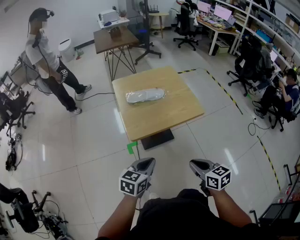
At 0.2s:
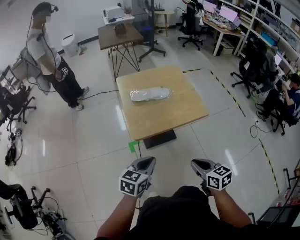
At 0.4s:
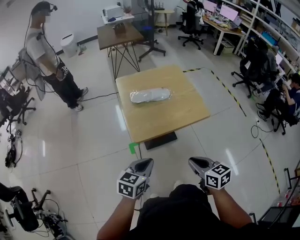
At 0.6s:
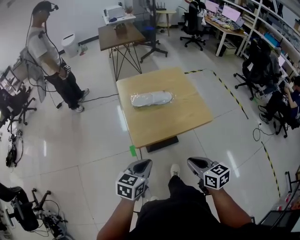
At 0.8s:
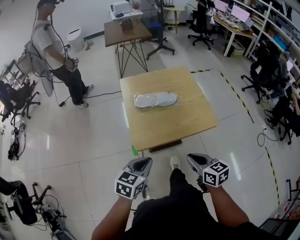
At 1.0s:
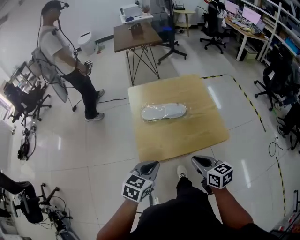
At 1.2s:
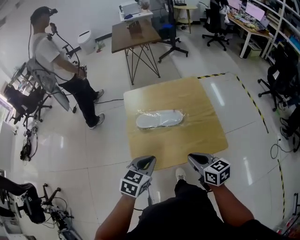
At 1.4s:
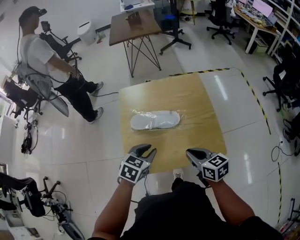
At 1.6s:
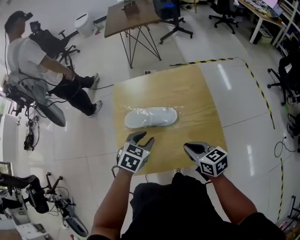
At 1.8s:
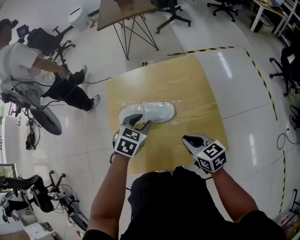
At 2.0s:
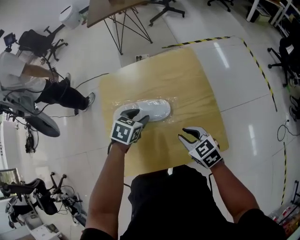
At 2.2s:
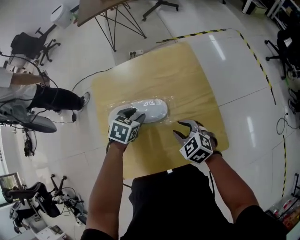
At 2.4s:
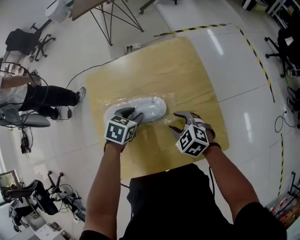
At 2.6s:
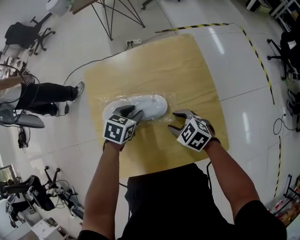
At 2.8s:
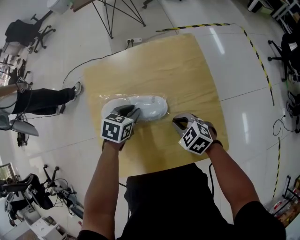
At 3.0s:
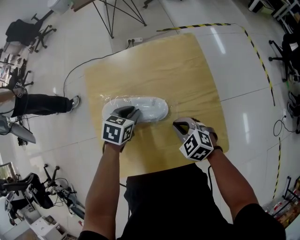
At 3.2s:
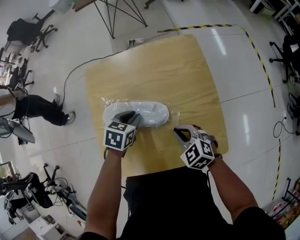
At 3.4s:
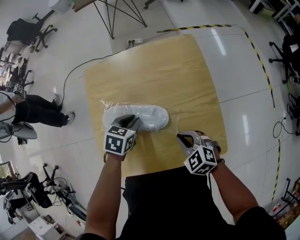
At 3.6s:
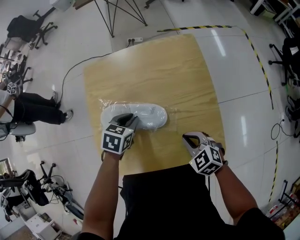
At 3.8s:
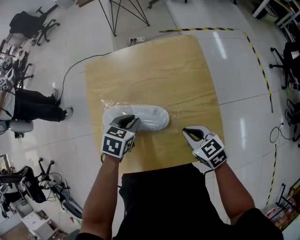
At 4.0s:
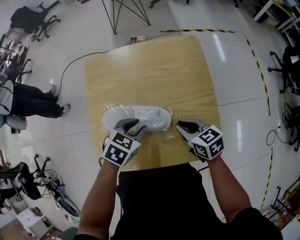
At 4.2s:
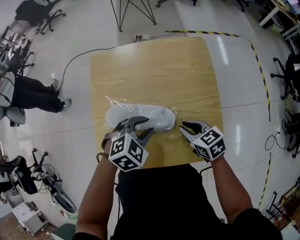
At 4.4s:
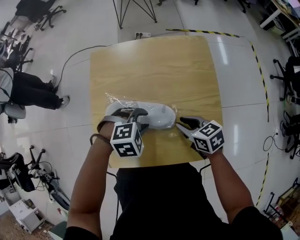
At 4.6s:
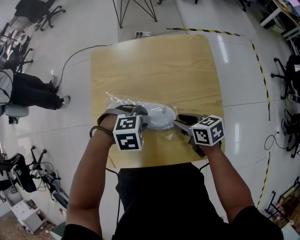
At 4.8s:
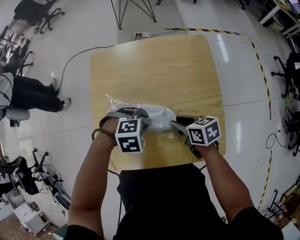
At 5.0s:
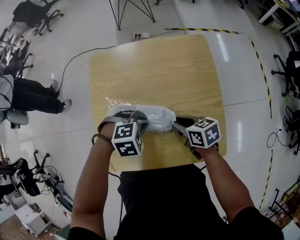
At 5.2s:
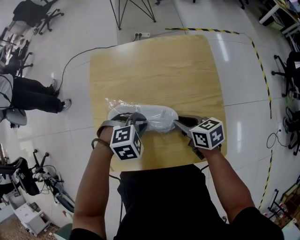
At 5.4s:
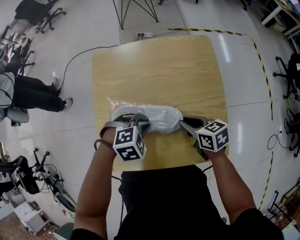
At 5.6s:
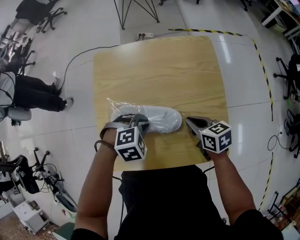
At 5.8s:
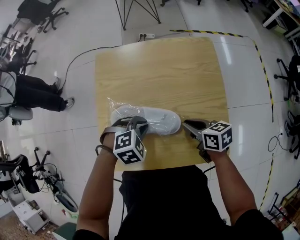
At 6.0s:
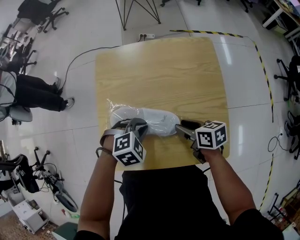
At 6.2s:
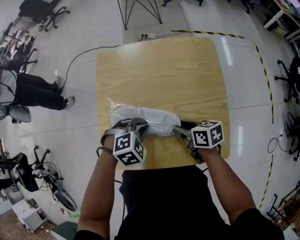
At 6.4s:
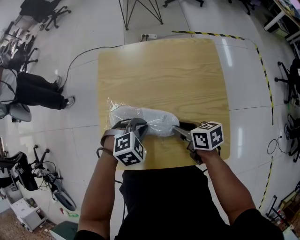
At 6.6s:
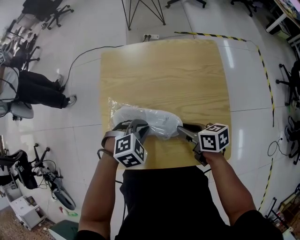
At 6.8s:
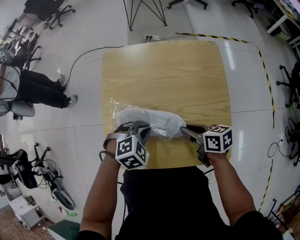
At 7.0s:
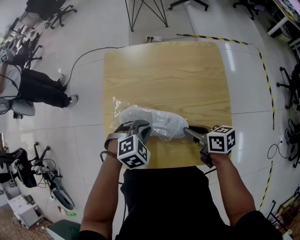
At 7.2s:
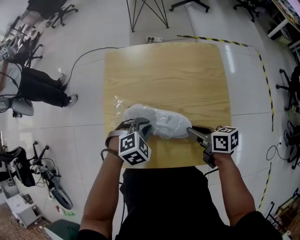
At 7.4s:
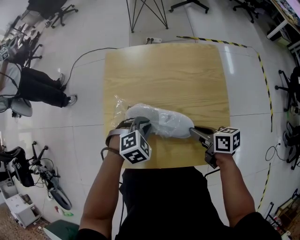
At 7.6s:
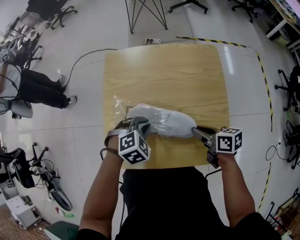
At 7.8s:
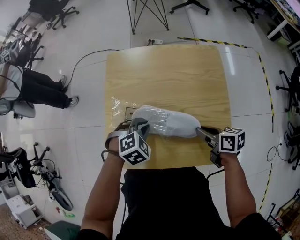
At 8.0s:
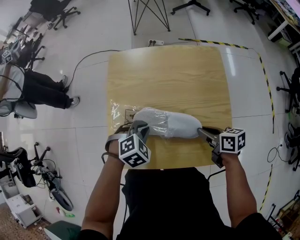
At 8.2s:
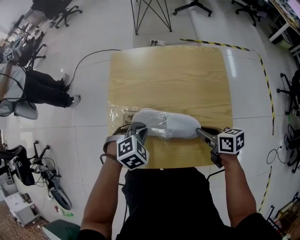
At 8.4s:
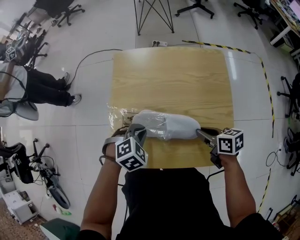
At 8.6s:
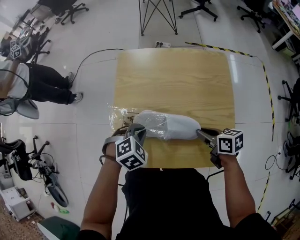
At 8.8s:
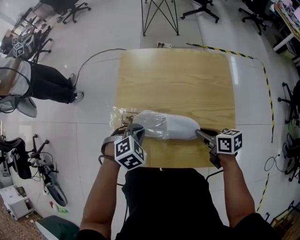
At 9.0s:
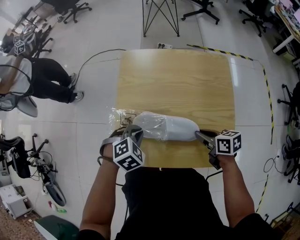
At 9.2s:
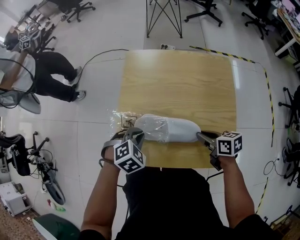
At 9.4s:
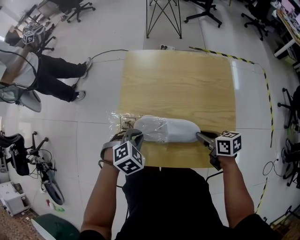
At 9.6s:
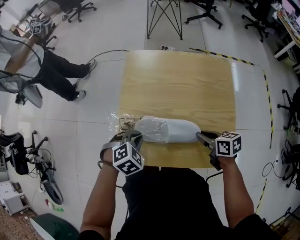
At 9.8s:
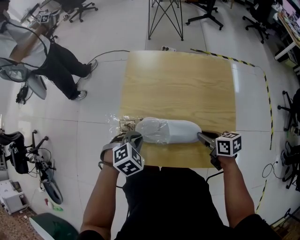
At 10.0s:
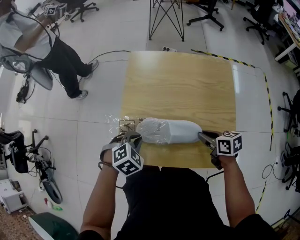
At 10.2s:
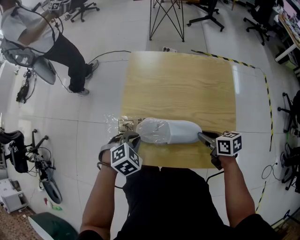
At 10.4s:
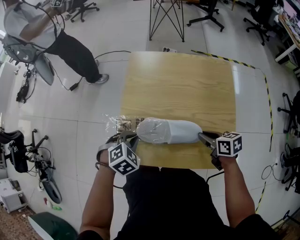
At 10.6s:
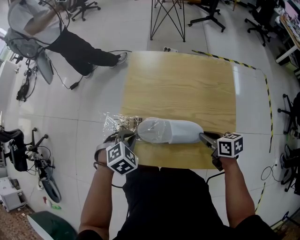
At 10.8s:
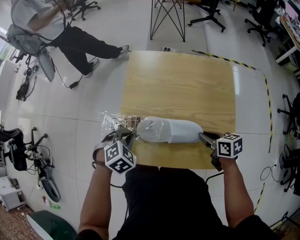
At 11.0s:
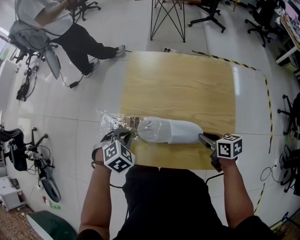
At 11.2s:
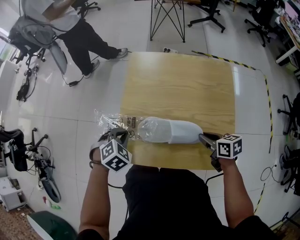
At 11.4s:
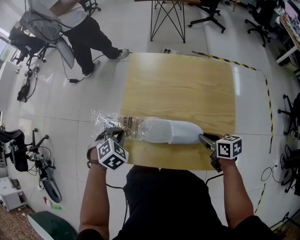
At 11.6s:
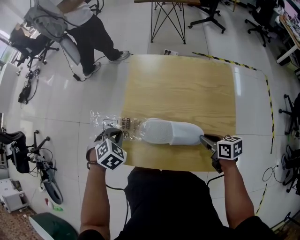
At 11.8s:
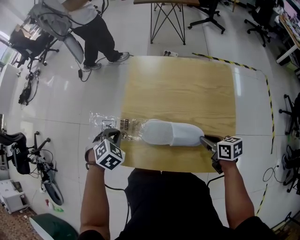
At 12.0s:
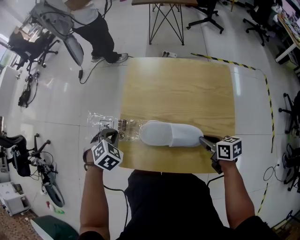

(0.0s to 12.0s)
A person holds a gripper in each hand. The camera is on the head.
0.0s - 1.6s: The two grippers travel together, forward, approximately 40 cm. The left gripper swivels approximately 30 degrees, and opens up.
1.6s - 3.0s: Both grippers travel together downward and forward, roughly 15 cm. The right gripper rotates roughly 40 degrees, and opens, then closes again.
3.0s - 4.4s: The left gripper heads backward, covering roughly 10 cm, and rolls clockwise, seen from behind, by approximately 50 degrees; the right gripper changes its angle by some 30 degrees, and opens.
4.4s - 6.0s: The right gripper swivels approximately 20 degrees, and closes, then reopens. The left gripper closes.
6.0s - 7.6s: The right gripper changes place by some 5 cm, and closes up.
7.6s - 9.0s: The left gripper is displaced to the left by roughly 10 cm.
9.0s - 10.4s: The left gripper shifts by about 5 cm.
10.4s - 12.0s: The left gripper travels forward and to the left by roughly 10 cm.

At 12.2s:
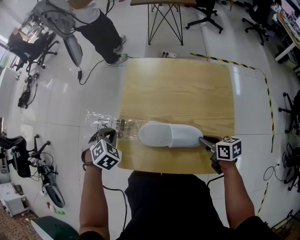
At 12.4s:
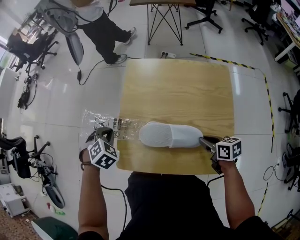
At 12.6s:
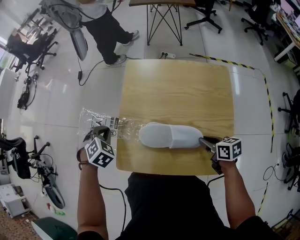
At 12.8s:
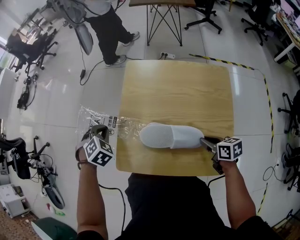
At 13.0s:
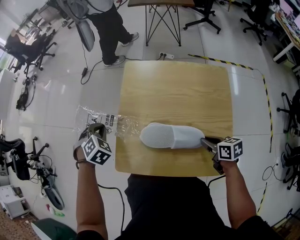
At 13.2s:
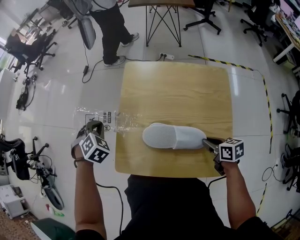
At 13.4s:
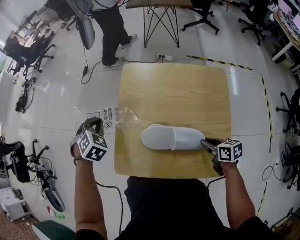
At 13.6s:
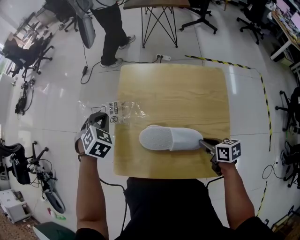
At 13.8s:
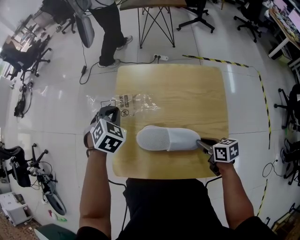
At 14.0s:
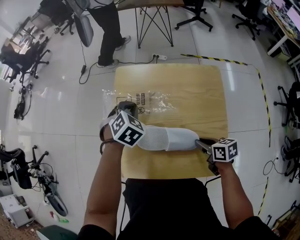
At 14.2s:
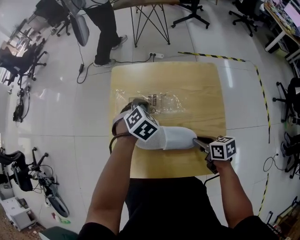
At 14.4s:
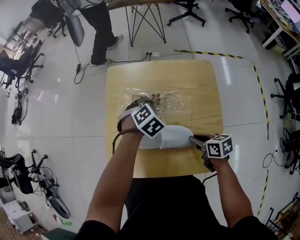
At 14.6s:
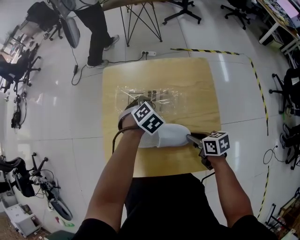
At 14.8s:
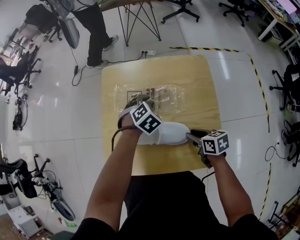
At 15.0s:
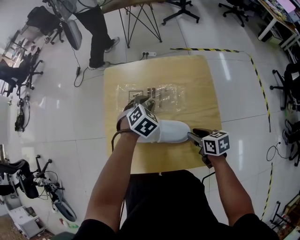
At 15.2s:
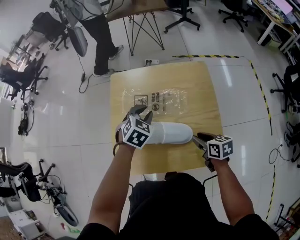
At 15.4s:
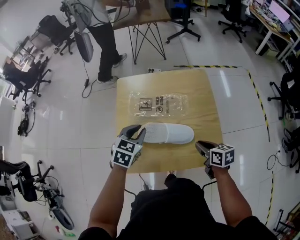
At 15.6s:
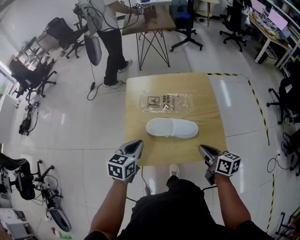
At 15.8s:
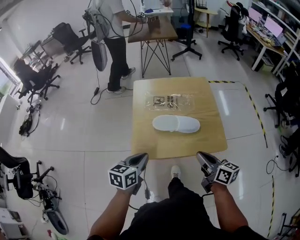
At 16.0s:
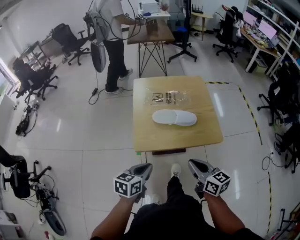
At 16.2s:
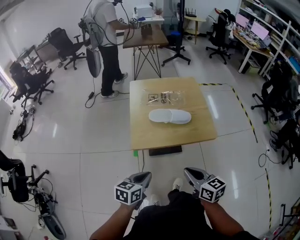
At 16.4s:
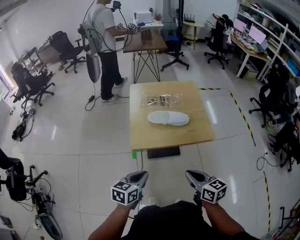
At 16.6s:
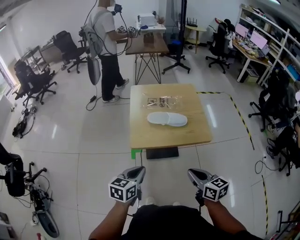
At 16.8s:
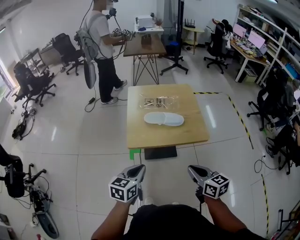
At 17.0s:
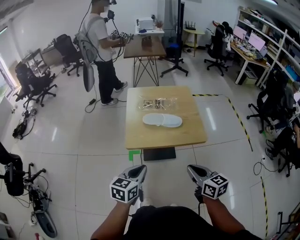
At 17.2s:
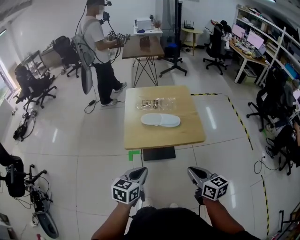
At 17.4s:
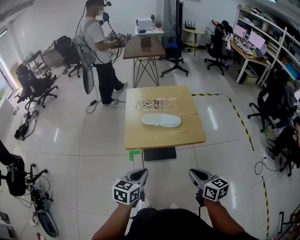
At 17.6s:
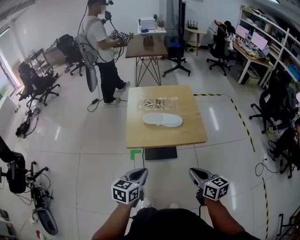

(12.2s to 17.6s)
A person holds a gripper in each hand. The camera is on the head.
12.2s - 13.6s: The left gripper shifts roughly 10 cm forward, to the right and upward.
13.6s - 15.0s: The right gripper opens. Meanwhile the left gripper shifts some 25 cm to the right, swivels roughly 20 degrees, and opens up.
15.0s - 16.2s: Both grippers are carried backward, roughly 50 cm. The right gripper is displaced upward by approximately 20 cm, swivels about 30 degrees, and closes up, while the left gripper rotates around the line of its fingers by some 40 degrees, counterclockwise from behind, and closes its fingers.
16.2s - 17.6s: The left gripper heads upward and to the right, covering roughly 10 cm; the right gripper shifts roughly 10 cm to the right.

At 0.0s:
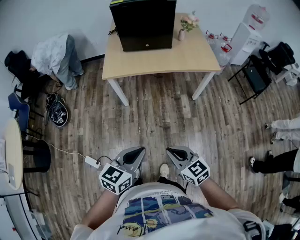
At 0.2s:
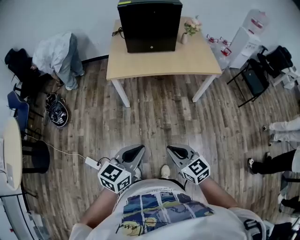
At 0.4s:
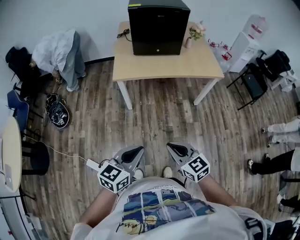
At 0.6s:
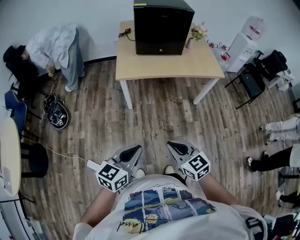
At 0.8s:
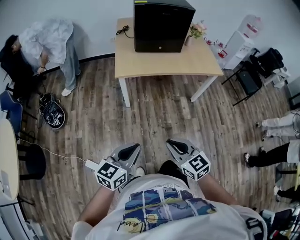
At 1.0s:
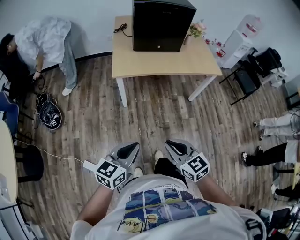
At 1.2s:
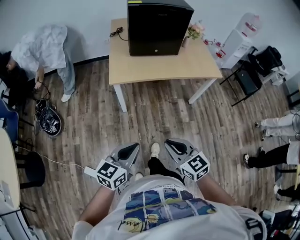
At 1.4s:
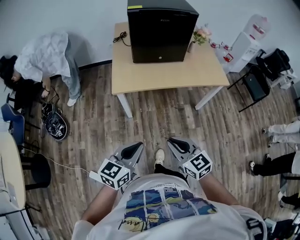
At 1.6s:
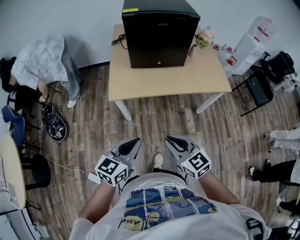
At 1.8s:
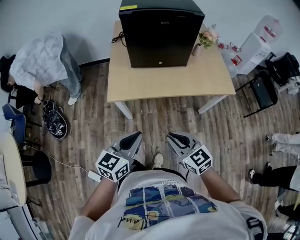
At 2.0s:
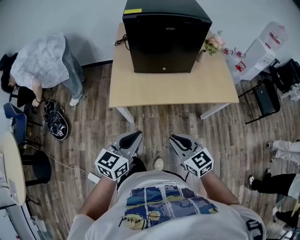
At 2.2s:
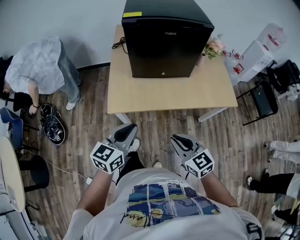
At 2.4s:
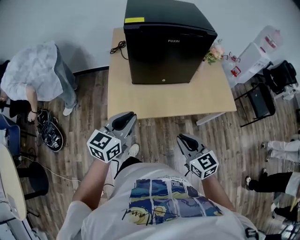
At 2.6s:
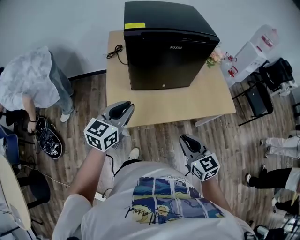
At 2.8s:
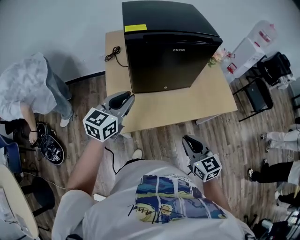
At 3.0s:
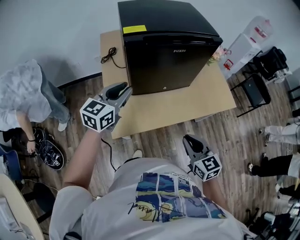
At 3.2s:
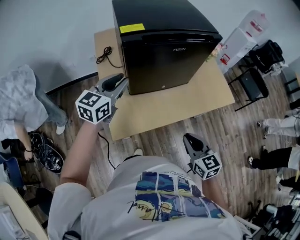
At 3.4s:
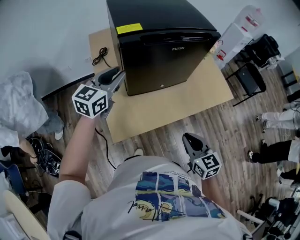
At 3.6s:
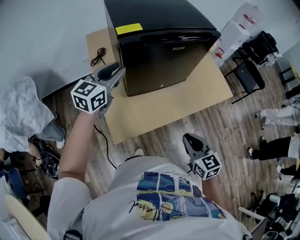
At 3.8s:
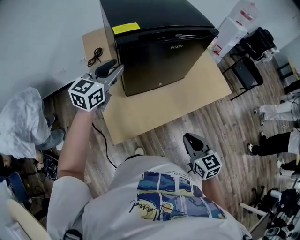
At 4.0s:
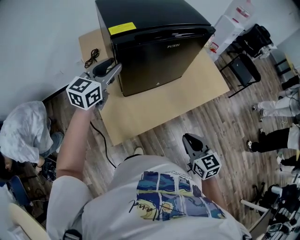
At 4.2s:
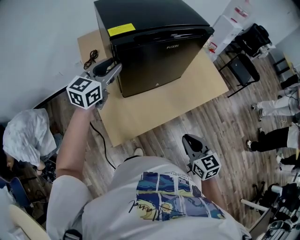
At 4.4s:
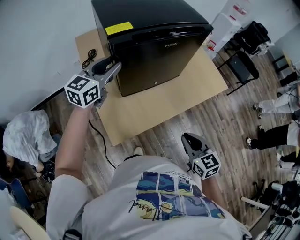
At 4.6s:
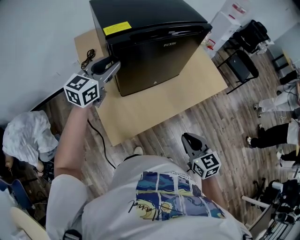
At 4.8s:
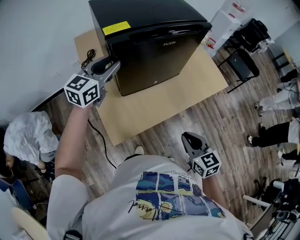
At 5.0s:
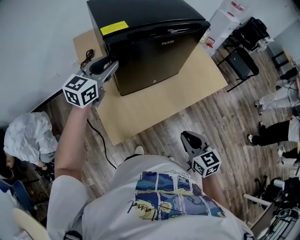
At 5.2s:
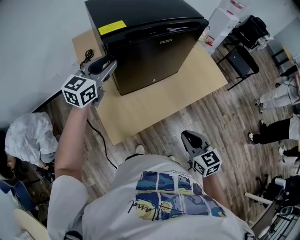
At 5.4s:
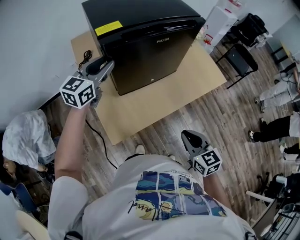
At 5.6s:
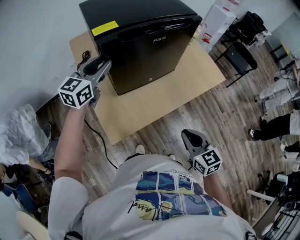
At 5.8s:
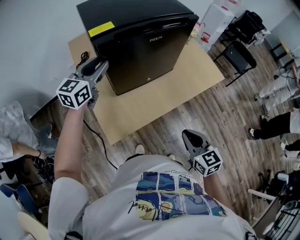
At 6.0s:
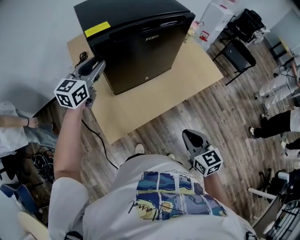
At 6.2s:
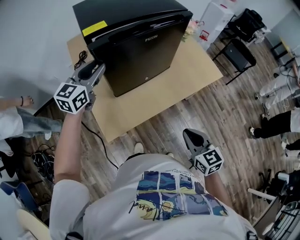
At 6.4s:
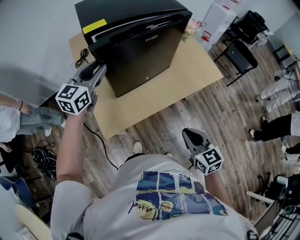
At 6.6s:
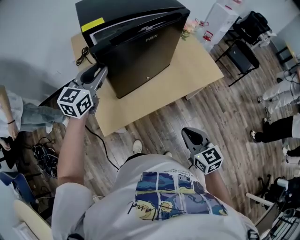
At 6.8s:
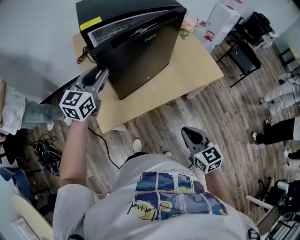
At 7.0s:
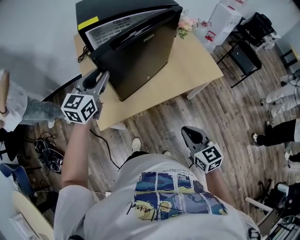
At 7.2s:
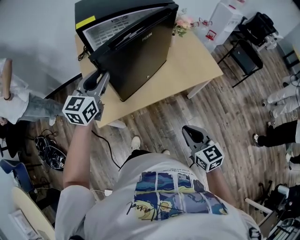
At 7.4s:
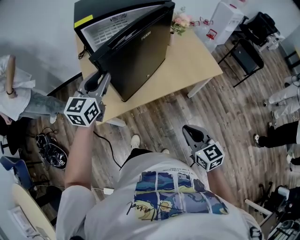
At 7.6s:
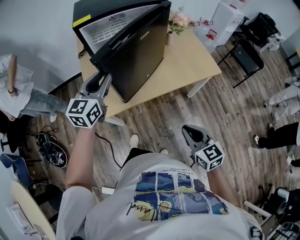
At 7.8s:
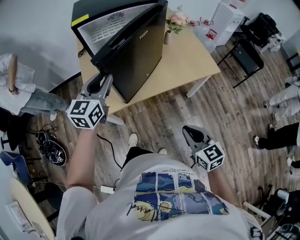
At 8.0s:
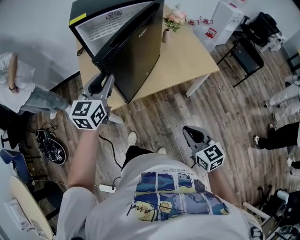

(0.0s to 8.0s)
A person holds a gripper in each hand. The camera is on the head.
0.0s - 1.6s: The two grippers go some 25 cm forward and to the left.
1.6s - 3.2s: The left gripper travels forward by about 50 cm, and opens. The right gripper moves forward, about 25 cm, and swivels some 30 degrees.
3.2s - 4.8s: The left gripper heads forward, covering approximately 10 cm.
4.8s - 6.4s: The left gripper changes place by about 5 cm. The right gripper goes roughly 5 cm to the right.
6.4s - 8.0s: The right gripper heads to the right and backward, covering about 15 cm; the left gripper goes about 20 cm backward and to the right.
